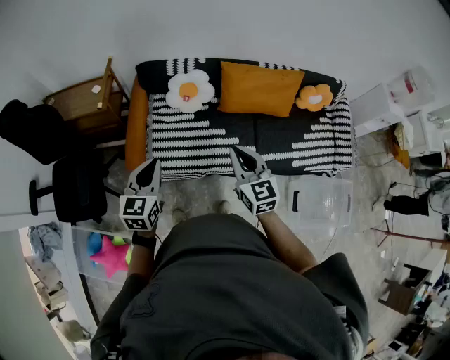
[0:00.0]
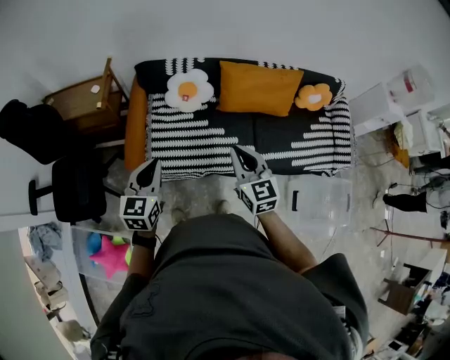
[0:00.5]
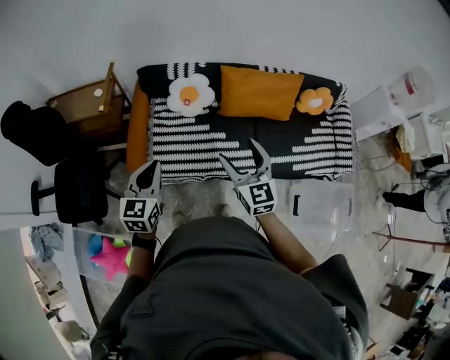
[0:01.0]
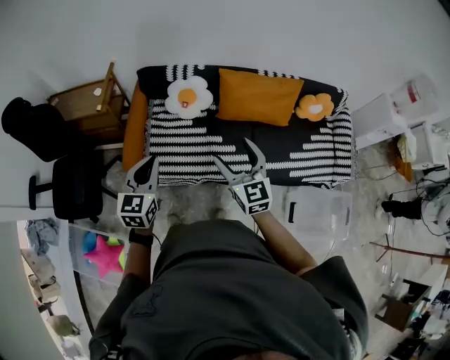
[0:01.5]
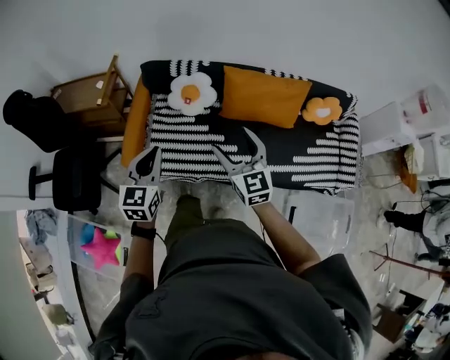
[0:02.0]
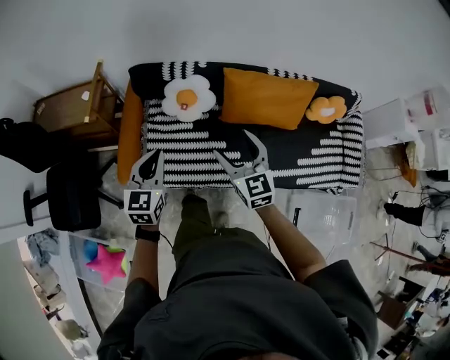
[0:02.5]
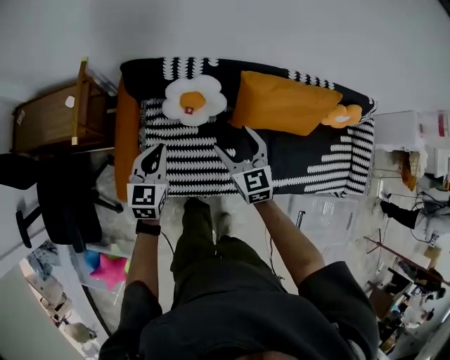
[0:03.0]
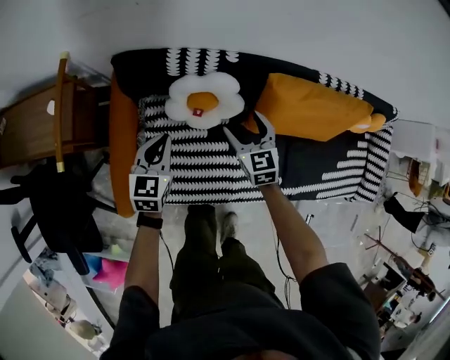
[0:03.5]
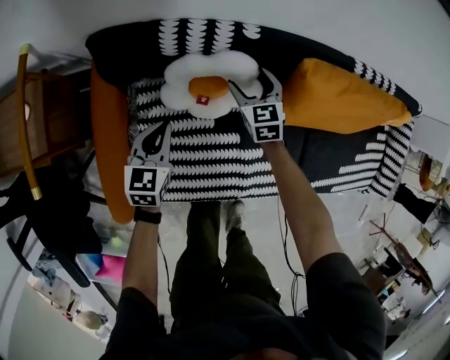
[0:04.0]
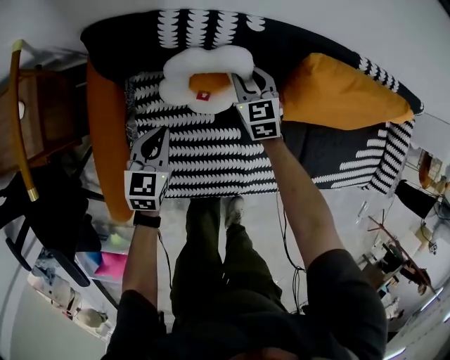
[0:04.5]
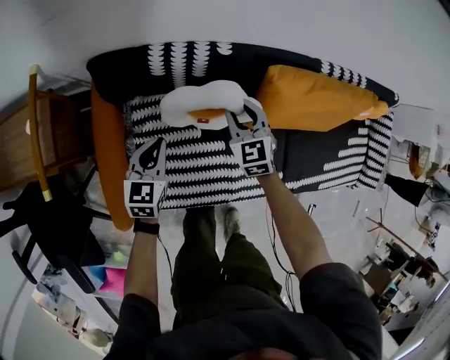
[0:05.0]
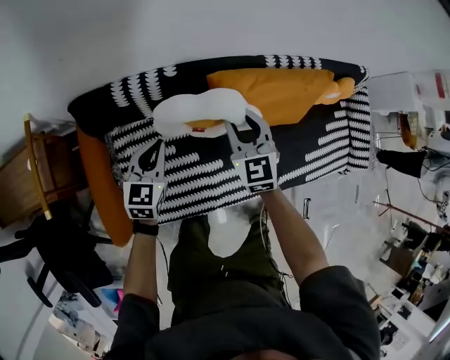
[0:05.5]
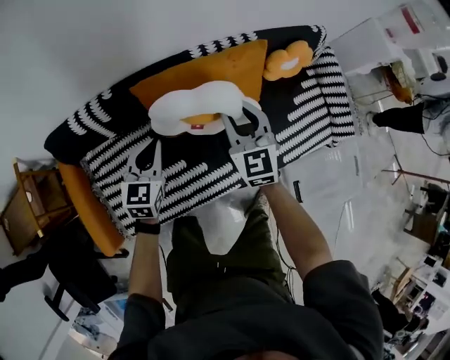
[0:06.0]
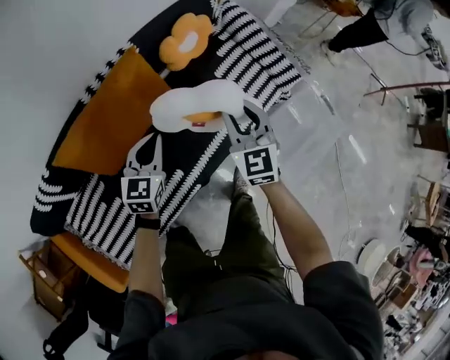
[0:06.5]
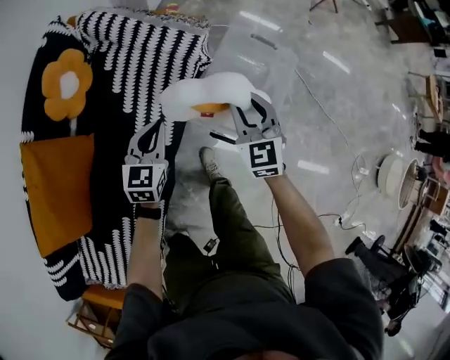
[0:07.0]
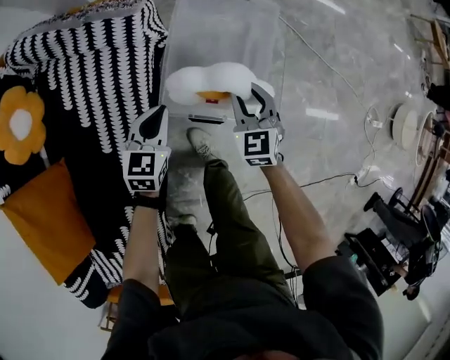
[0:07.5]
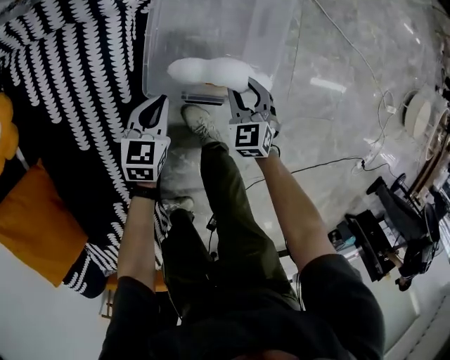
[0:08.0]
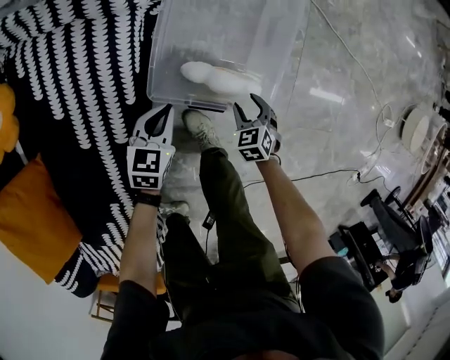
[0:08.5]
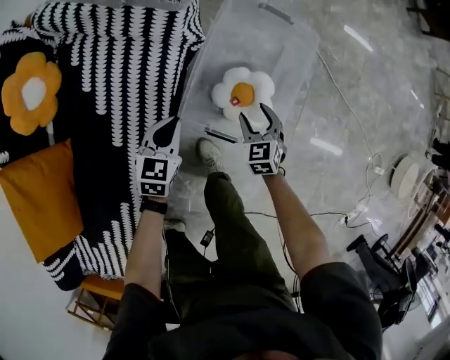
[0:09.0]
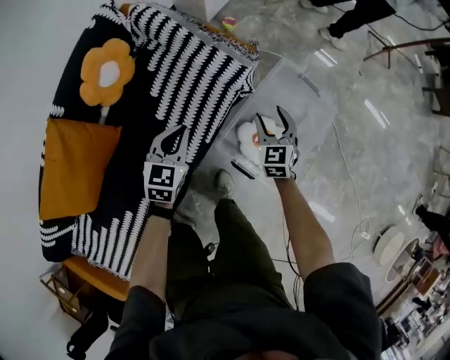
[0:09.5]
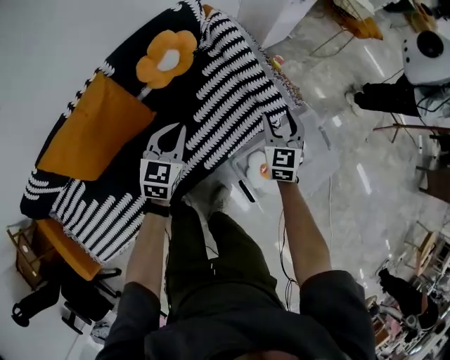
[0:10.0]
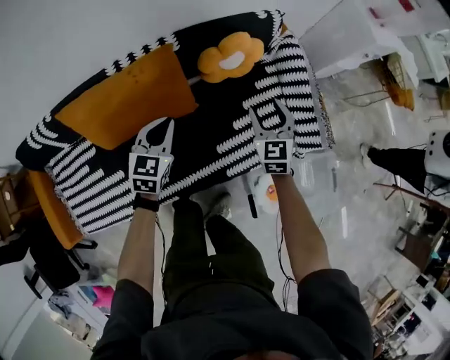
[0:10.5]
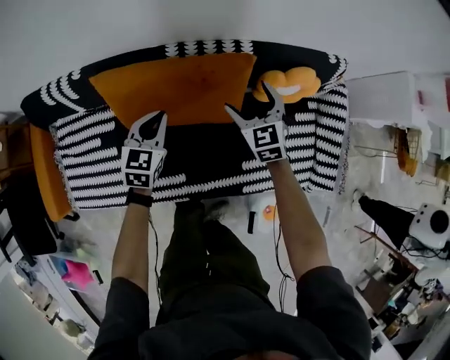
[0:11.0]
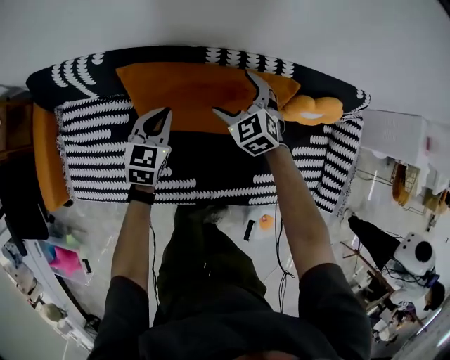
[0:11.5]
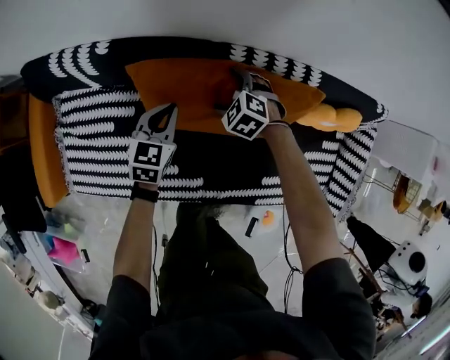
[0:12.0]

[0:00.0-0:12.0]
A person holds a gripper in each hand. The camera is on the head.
0:00.0 to 0:02.0: The left gripper goes about 10 cm to the right; the right gripper shifts some 10 cm forward and to the right, and opens.
0:02.0 to 0:04.0: The pair of grippers is taken forward, some 50 cm. Both grippers travel together downward, approximately 50 cm. The right gripper rotates roughly 30 degrees, while the left gripper swivels approximately 20 degrees.
0:04.0 to 0:06.0: The grippers both shift to the right and upward by some 40 cm. The left gripper swivels some 20 degrees; the right gripper rotates roughly 30 degrees, and closes up.
0:06.0 to 0:08.0: The two grippers travel together, about 80 cm. The right gripper angles its fingers downward, by roughly 30 degrees, while the left gripper swivels approximately 80 degrees.
0:08.0 to 0:10.0: Both grippers travel together upward, about 40 cm. The left gripper changes its angle by about 50 degrees; the right gripper turns by roughly 40 degrees.
0:10.0 to 0:12.0: Both grippers are carried approximately 70 cm. The left gripper turns by about 40 degrees. Meanwhile the right gripper tilts its fingers approximately 40 degrees downward, and opens its fingers.

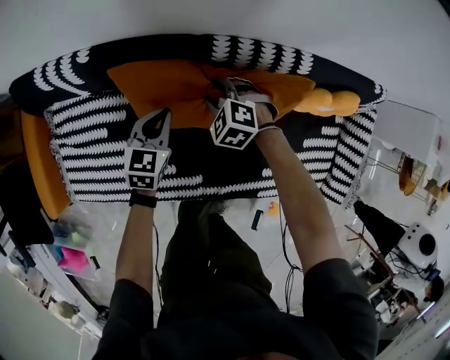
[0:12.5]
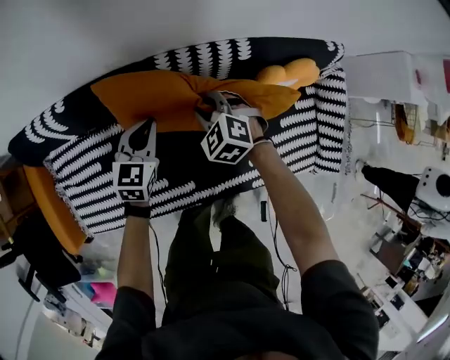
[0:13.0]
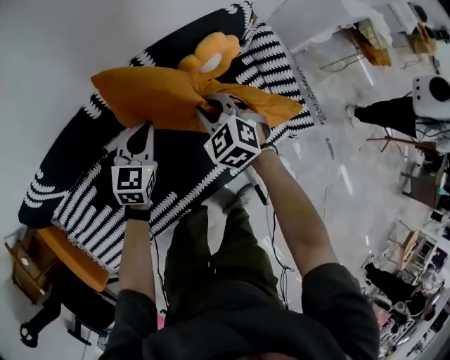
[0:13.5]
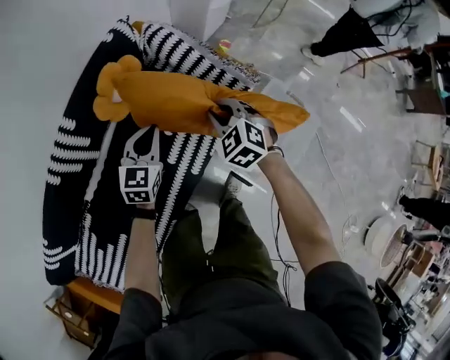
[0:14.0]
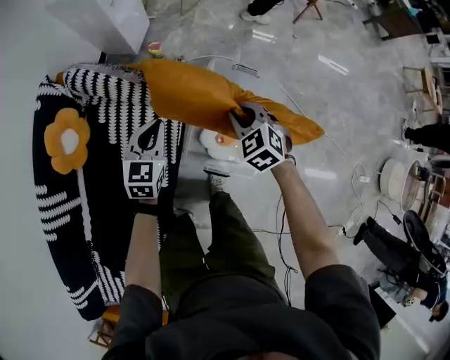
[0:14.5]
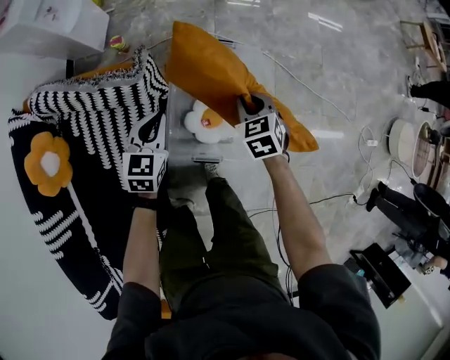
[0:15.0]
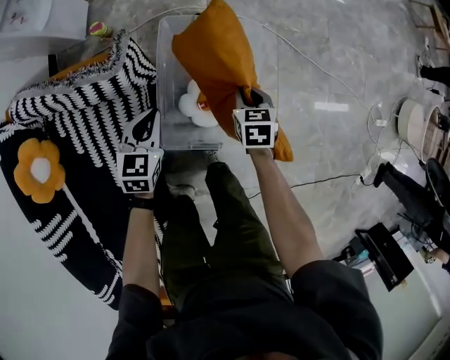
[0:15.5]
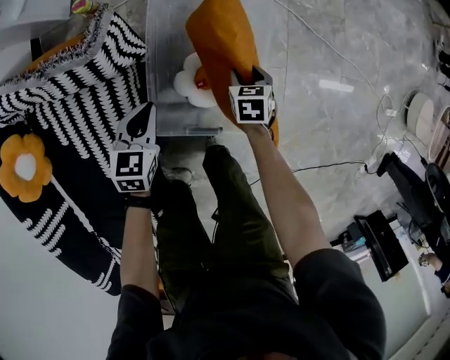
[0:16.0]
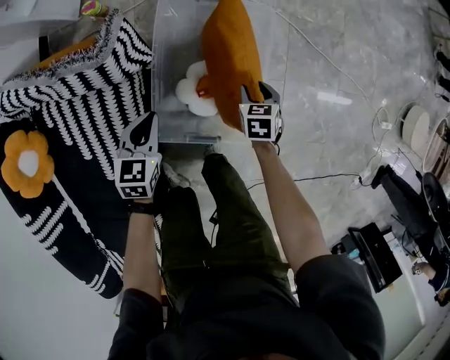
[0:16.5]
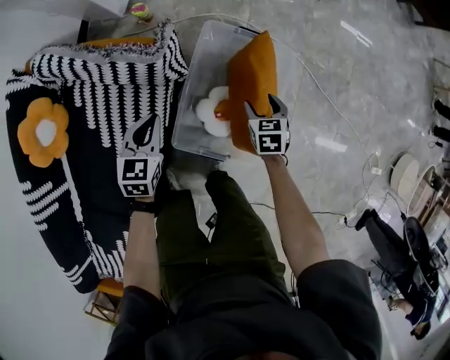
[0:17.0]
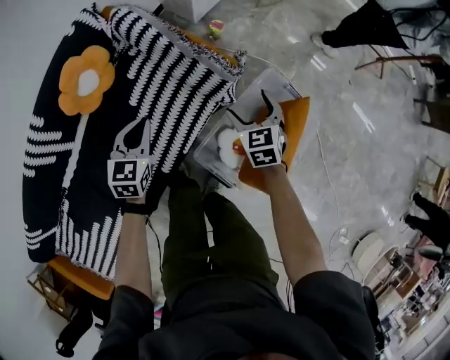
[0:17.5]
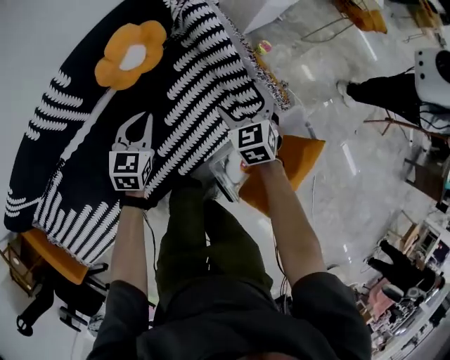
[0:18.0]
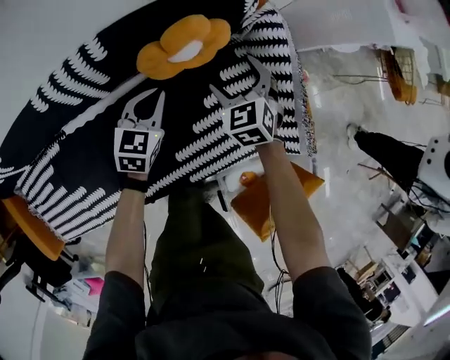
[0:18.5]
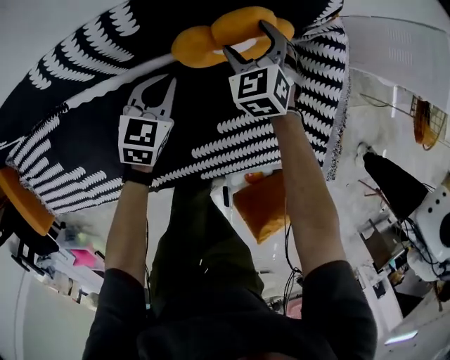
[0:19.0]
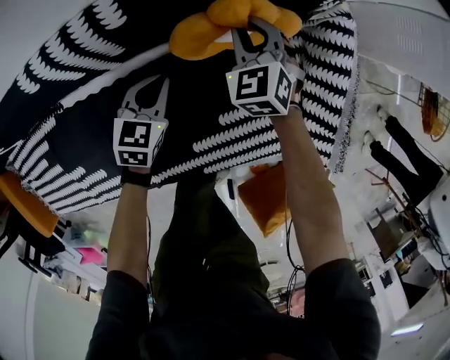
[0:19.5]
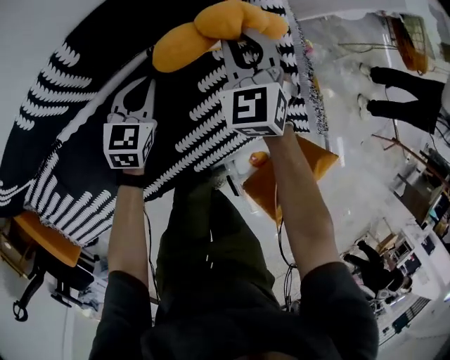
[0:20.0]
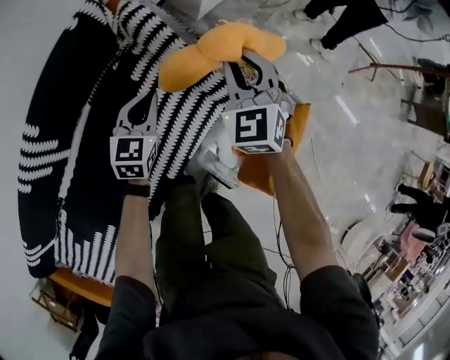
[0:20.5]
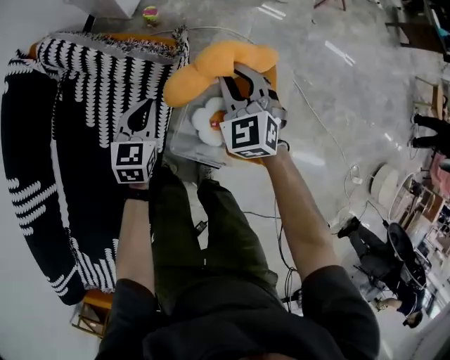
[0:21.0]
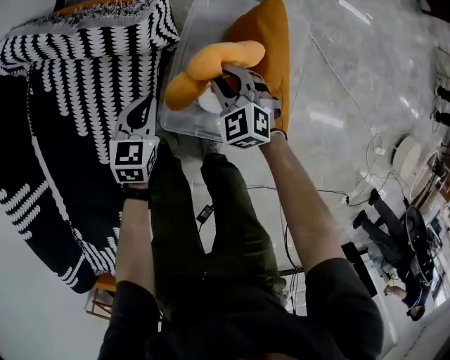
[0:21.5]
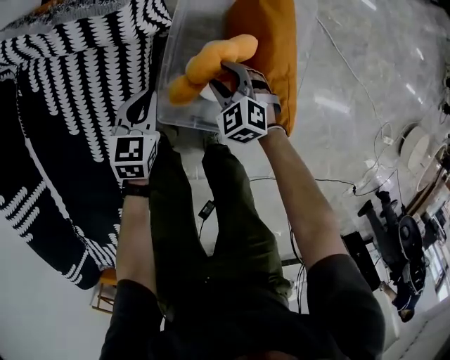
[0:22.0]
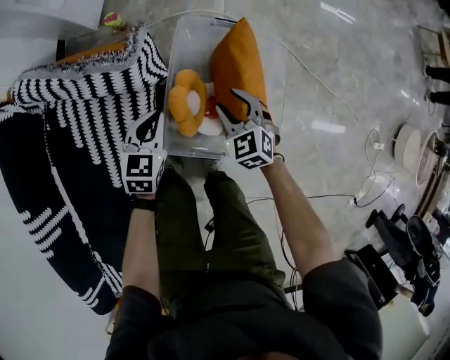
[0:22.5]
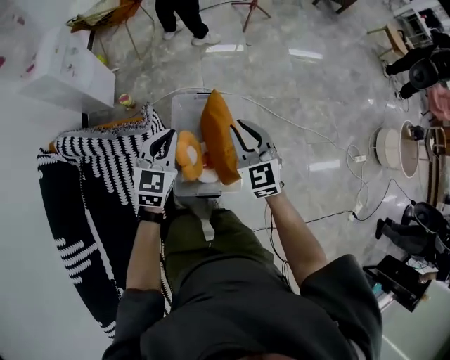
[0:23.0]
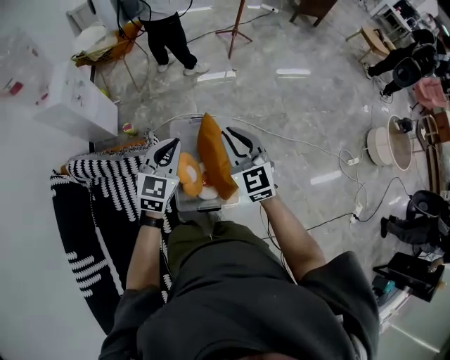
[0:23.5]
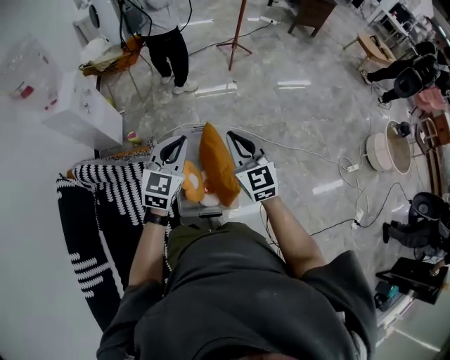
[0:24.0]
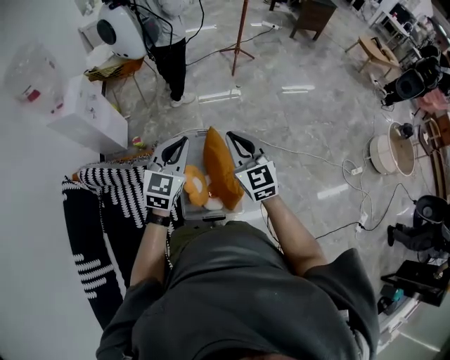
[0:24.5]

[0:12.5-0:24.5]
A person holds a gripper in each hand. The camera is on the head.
0:12.5 to 0:14.5: Both grippers are carried roughly 90 cm. The left gripper swivels about 80 degrees. The right gripper twists approximately 90 degrees clockwise, seen from behind.
0:14.5 to 0:16.5: Both grippers move downward and to the right, approximately 35 cm. The right gripper twists about 50 degrees clockwise, seen from behind, while the left gripper swivels about 20 degrees.
0:16.5 to 0:18.5: The two grippers travel together, some 70 cm. The right gripper twists some 80 degrees counterclockwise, seen from behind, and opens. The left gripper rotates roughly 60 degrees.
0:18.5 to 0:20.5: The right gripper ends up approximately 35 cm from where it was, swivels approximately 40 degrees, and closes its fingers. Meanwhile the left gripper travels downward and back again, approximately 15 cm each way, and swivels some 30 degrees.
0:20.5 to 0:22.5: The right gripper moves to the right, downward and backward, about 50 cm, and swivels roughly 30 degrees. The left gripper travels to the right by some 35 cm, and rotates approximately 40 degrees.
0:22.5 to 0:24.5: Both grippers move upward, about 50 cm. The right gripper points its fingers roughly 30 degrees further upward, and closes up, while the left gripper turns by approximately 40 degrees.

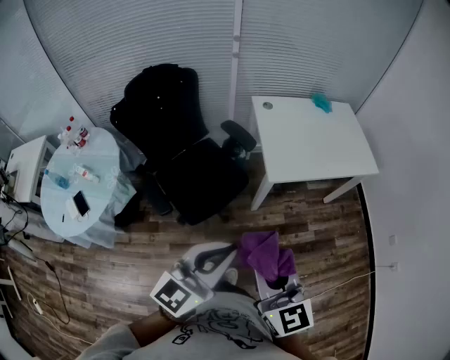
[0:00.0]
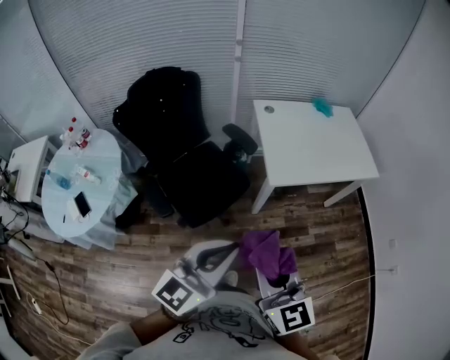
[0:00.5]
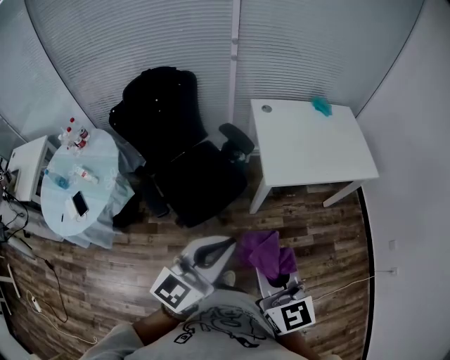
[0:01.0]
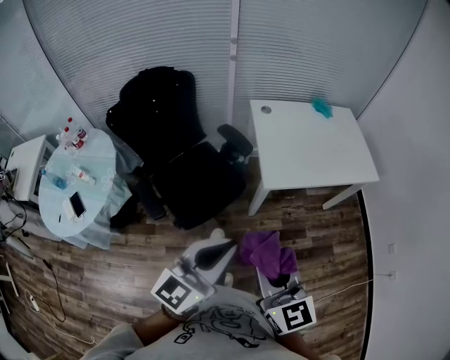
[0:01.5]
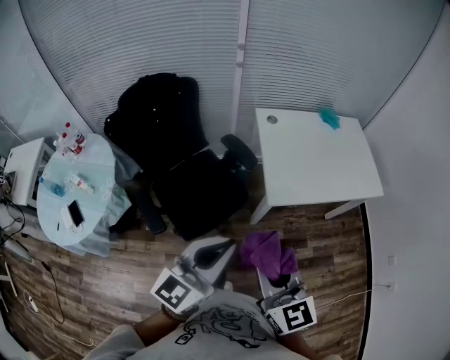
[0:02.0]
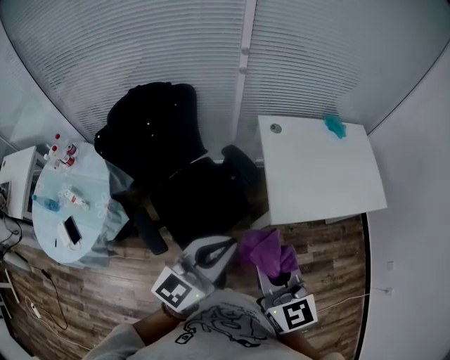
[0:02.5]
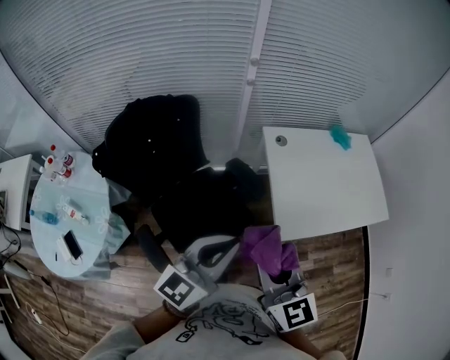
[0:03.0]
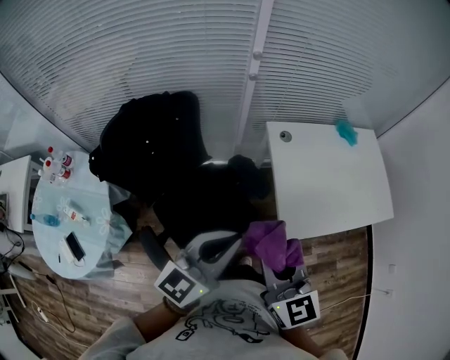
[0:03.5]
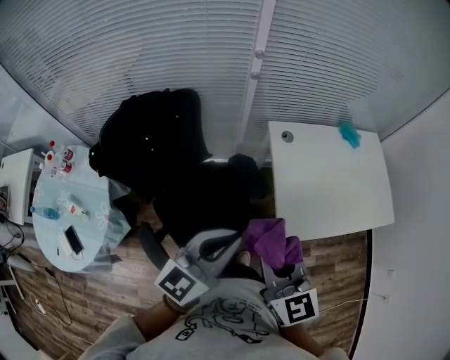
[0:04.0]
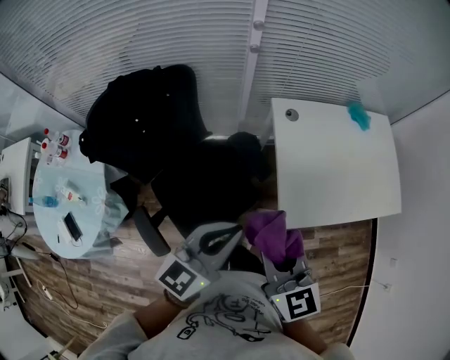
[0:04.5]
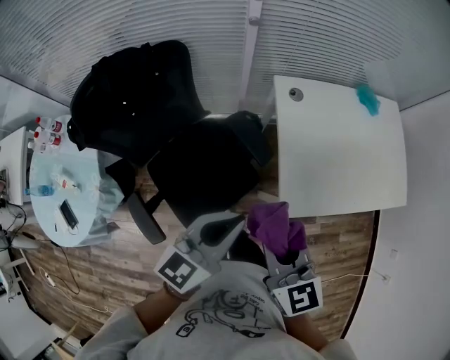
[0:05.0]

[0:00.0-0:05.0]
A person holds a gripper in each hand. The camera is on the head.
0:00.0 to 0:02.5: The grippers both shift forward by some 25 cm.
0:02.5 to 0:05.0: Both grippers travel together forward and downward, roughly 20 cm.
